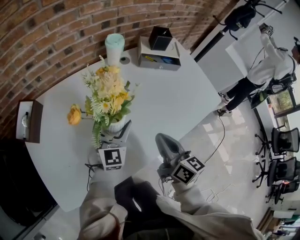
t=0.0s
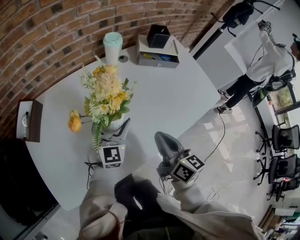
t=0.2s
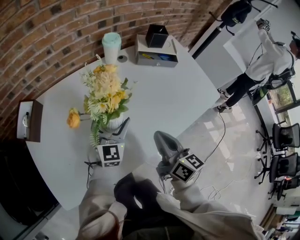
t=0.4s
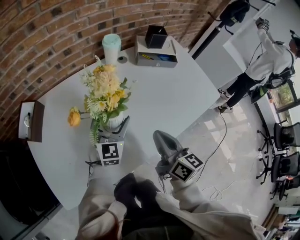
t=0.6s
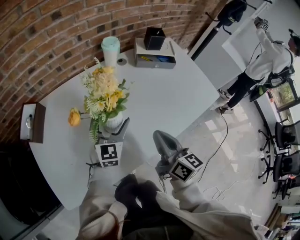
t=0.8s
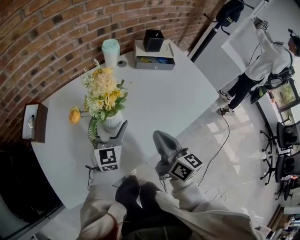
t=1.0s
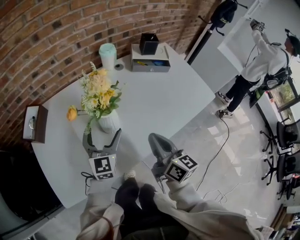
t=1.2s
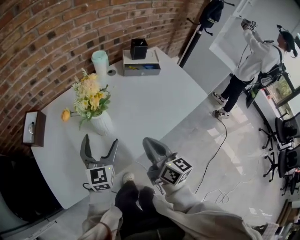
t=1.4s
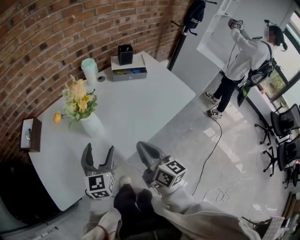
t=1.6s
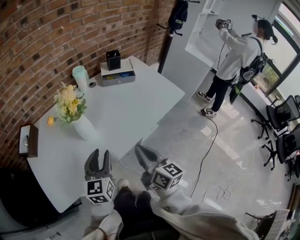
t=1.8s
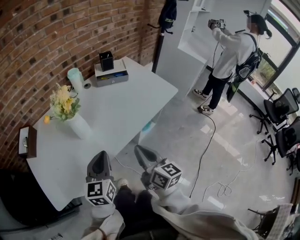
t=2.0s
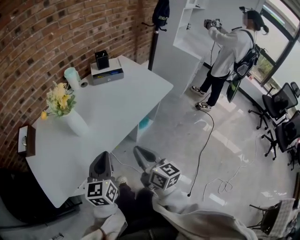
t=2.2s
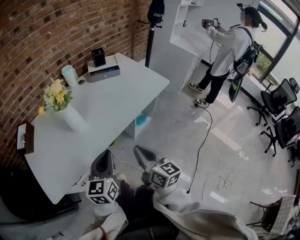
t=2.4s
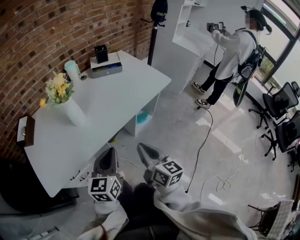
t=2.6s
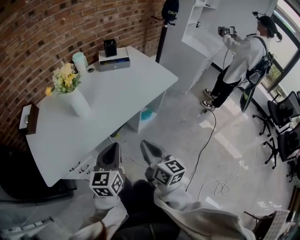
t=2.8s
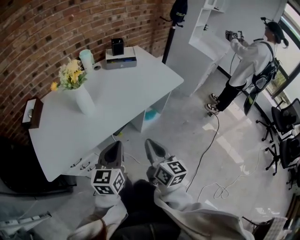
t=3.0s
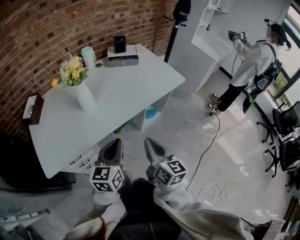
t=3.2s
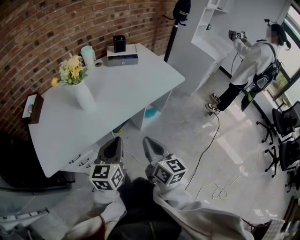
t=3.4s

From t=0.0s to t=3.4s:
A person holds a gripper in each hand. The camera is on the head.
From t=0.0s to t=1.6s: Both grippers move backward and upward, roughly 15 cm.
From t=1.6s to t=3.4s: The grippers both shift backward and to the right by roughly 25 cm. The left gripper closes its fingers.

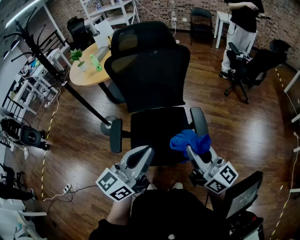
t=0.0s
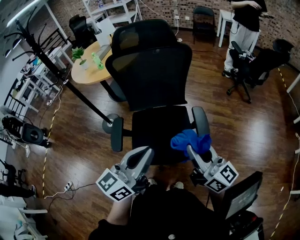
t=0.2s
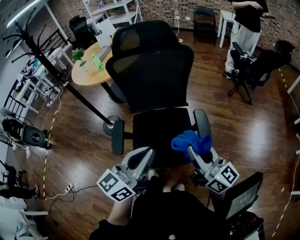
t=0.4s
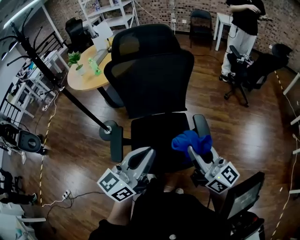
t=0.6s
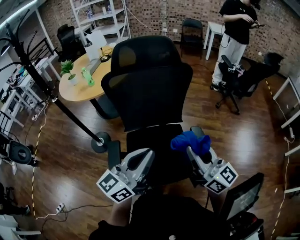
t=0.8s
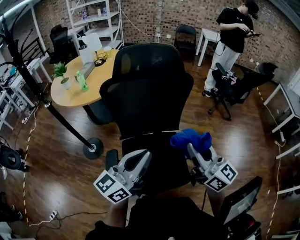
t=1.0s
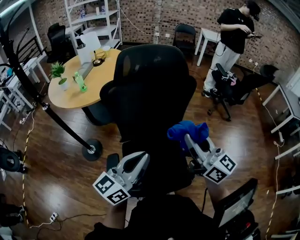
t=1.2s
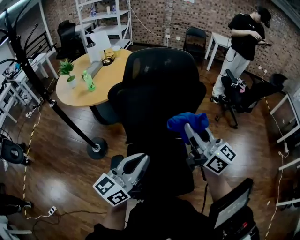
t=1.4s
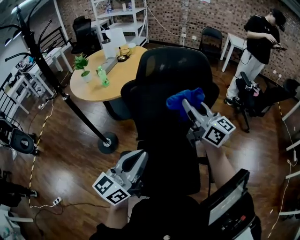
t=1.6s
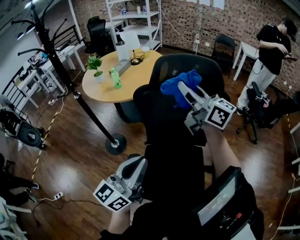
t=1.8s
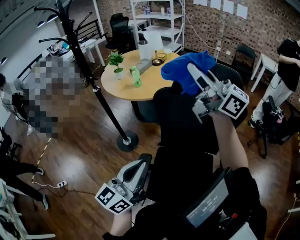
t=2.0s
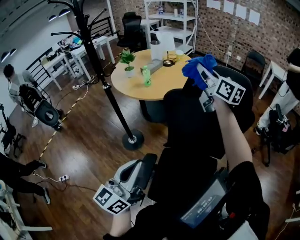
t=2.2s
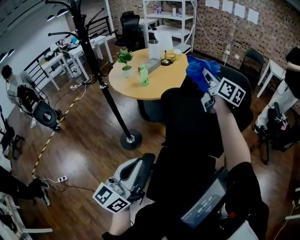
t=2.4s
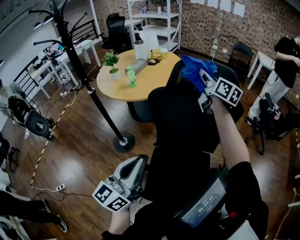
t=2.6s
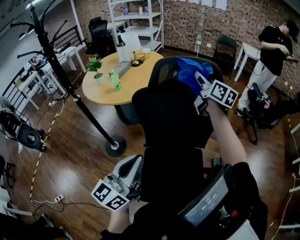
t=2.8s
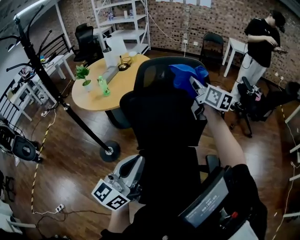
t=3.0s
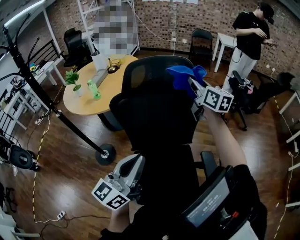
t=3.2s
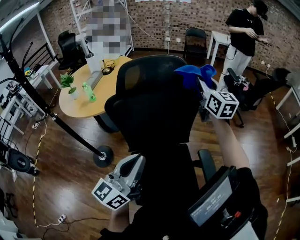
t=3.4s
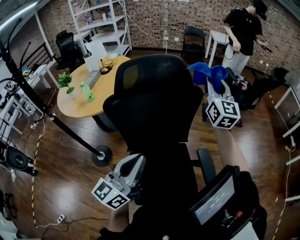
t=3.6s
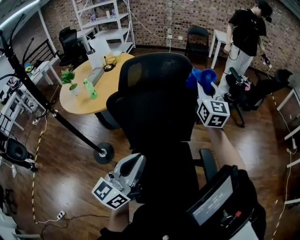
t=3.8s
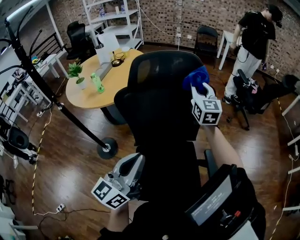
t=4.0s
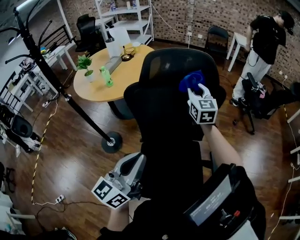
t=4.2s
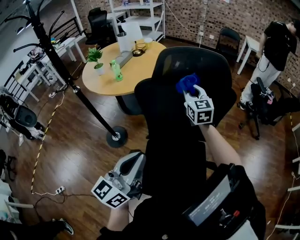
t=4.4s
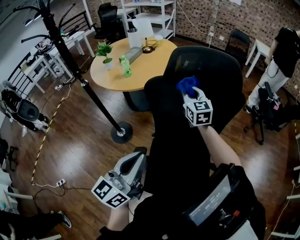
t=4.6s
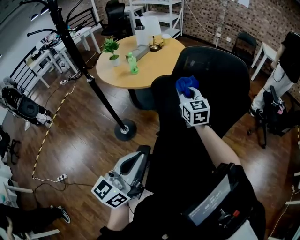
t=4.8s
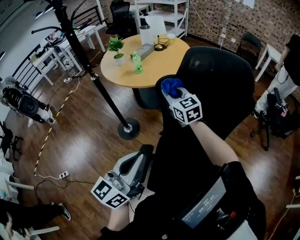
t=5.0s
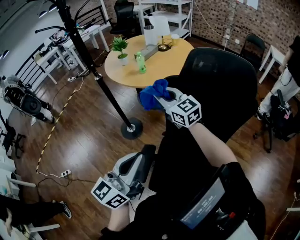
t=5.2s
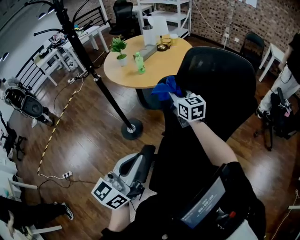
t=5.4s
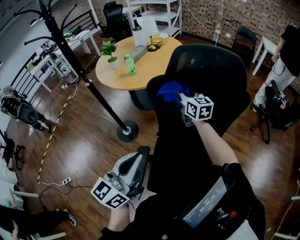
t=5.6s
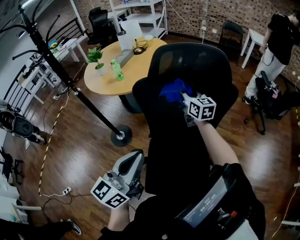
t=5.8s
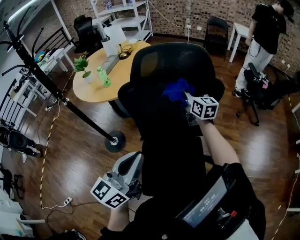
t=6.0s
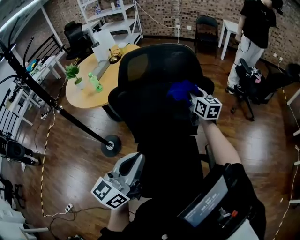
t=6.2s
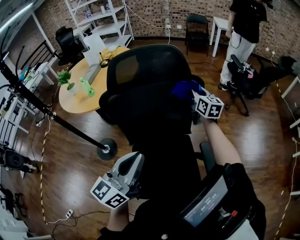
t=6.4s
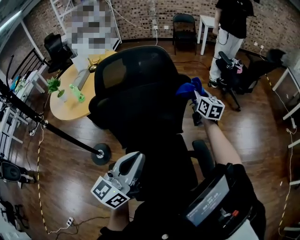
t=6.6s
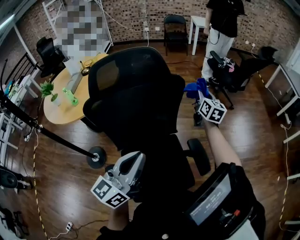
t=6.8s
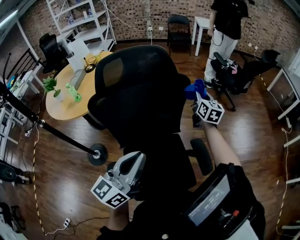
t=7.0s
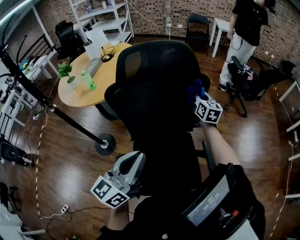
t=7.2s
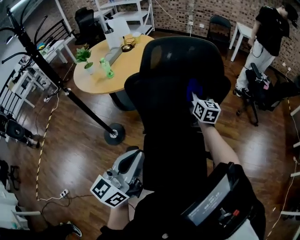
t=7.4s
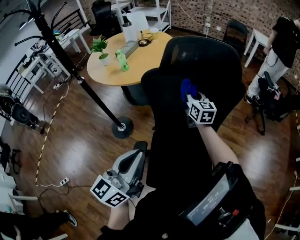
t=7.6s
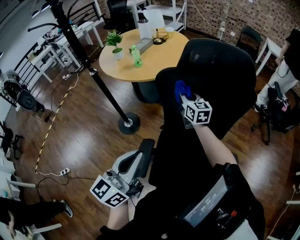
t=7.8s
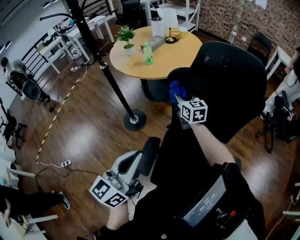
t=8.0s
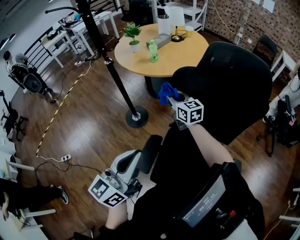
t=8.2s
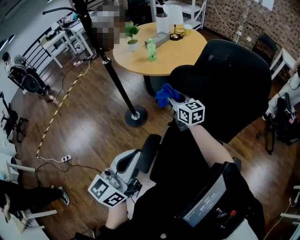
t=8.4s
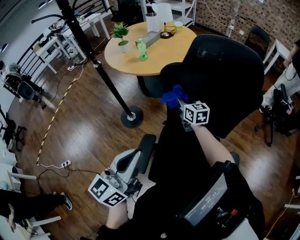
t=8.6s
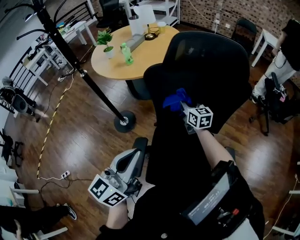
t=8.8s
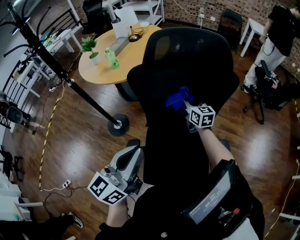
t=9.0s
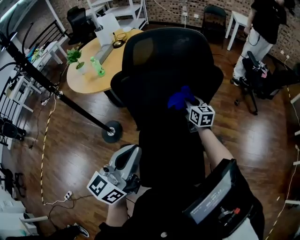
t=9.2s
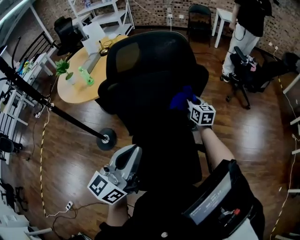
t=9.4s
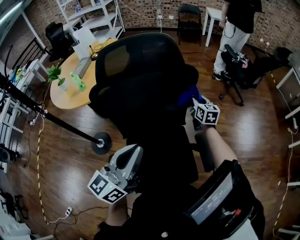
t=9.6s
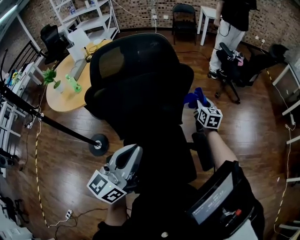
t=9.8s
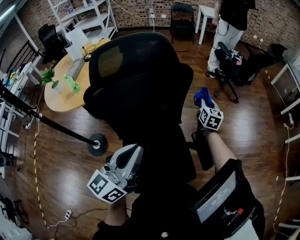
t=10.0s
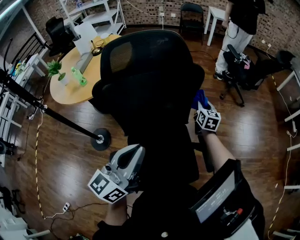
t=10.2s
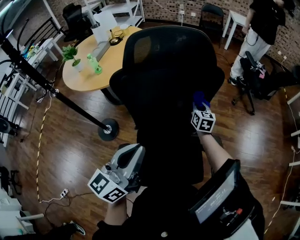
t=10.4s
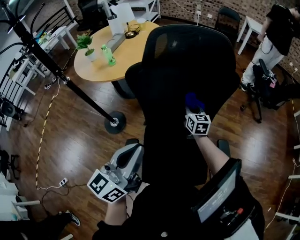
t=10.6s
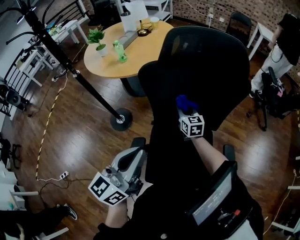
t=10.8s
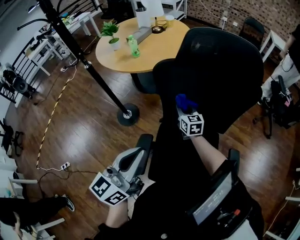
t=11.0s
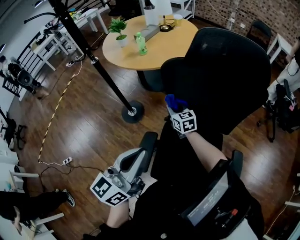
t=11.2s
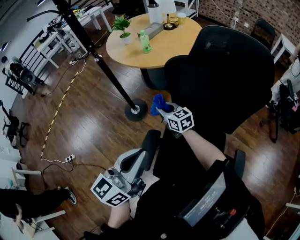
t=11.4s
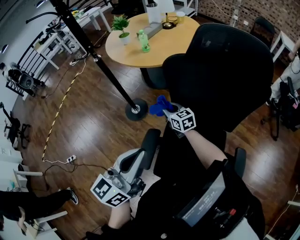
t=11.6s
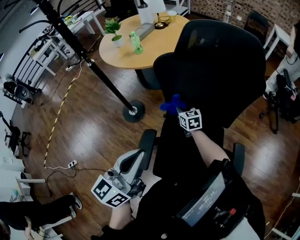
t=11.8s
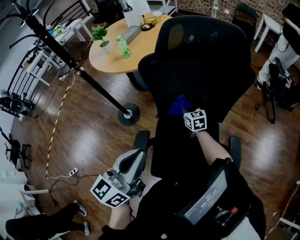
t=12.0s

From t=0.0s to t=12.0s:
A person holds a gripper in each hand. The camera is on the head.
From t=0.0s to t=1.6s: The right gripper heads forward and to the left, covering approximately 40 cm. Meanwhile the left gripper travels forward and to the left by roughly 25 cm.
From t=1.6s to t=3.0s: The right gripper reaches about 15 cm upward, then returns.
From t=3.0s to t=4.4s: The left gripper moves about 5 cm to the right and comes back, while the right gripper moves downward and to the left, approximately 15 cm, and swivels some 30 degrees.
From t=4.4s to t=6.0s: The right gripper turns by some 20 degrees.
From t=7.6s to t=9.0s: The right gripper shifts approximately 10 cm downward, and reaches roughly 25 cm to the left, then returns. Meanwhile the left gripper travels to the left and back again, about 5 cm each way.
From t=9.0s to t=10.4s: The right gripper changes its angle by some 30 degrees.
From t=10.4s to t=12.0s: The left gripper changes place by about 10 cm. Meanwhile the right gripper changes its angle by approximately 30 degrees.

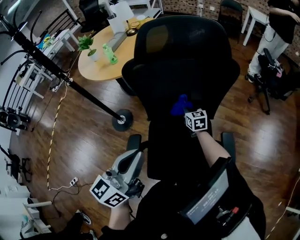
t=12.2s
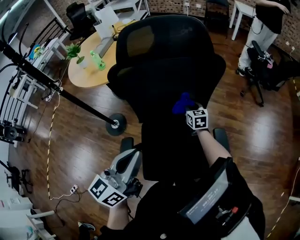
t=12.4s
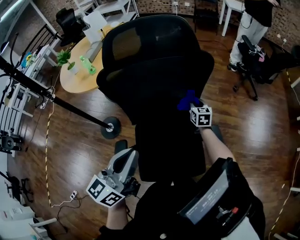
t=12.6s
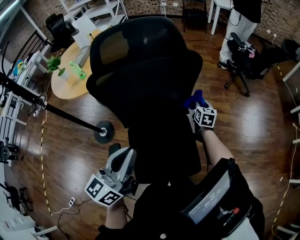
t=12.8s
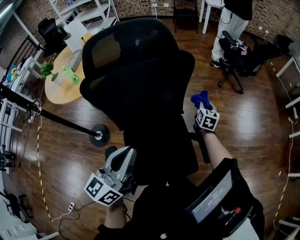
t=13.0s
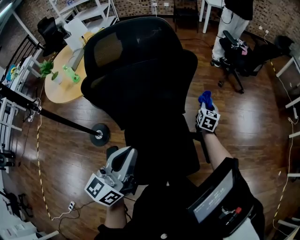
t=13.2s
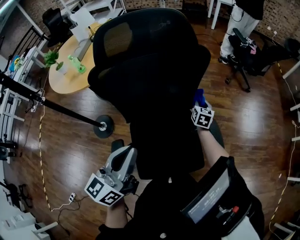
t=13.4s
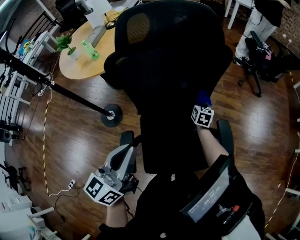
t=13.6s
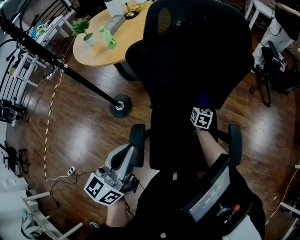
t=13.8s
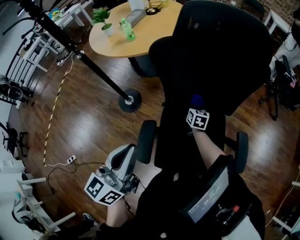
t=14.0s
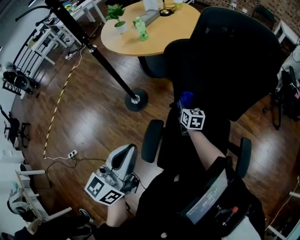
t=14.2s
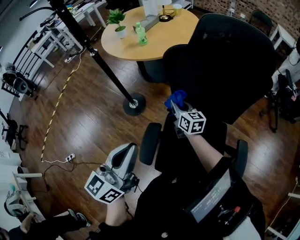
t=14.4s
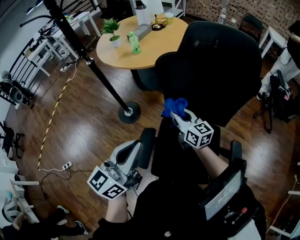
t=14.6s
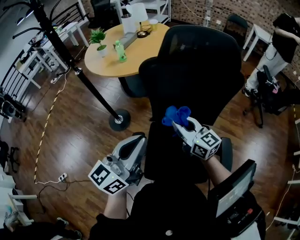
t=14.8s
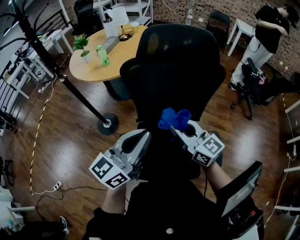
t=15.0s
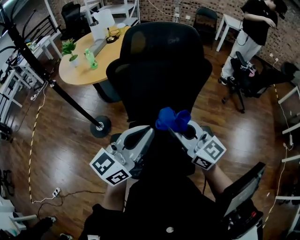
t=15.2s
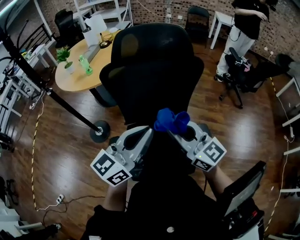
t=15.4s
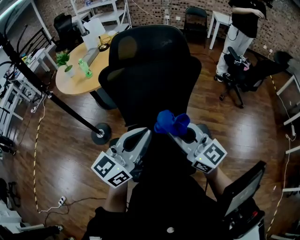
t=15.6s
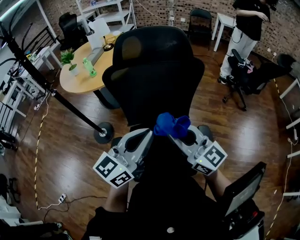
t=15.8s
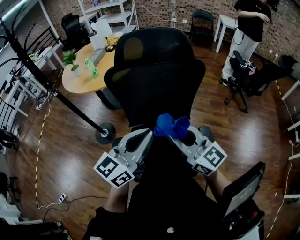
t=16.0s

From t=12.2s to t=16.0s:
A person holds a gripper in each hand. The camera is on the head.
From t=12.2s to t=13.4s: The left gripper changes place by roughly 5 cm. Meanwhile the right gripper ends up some 25 cm from where it was, and rotates roughly 40 degrees.
From t=13.4s to t=14.8s: The right gripper moves some 40 cm, and swivels some 70 degrees.
From t=14.8s to t=16.0s: The left gripper is displaced to the right by roughly 15 cm. The right gripper goes about 20 cm to the right, backward and upward.

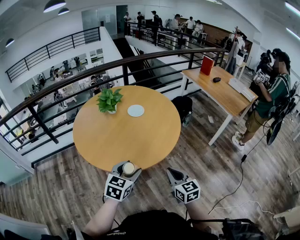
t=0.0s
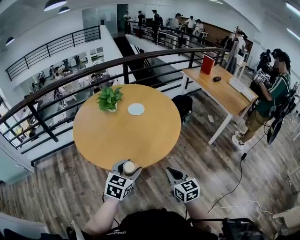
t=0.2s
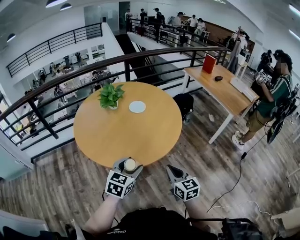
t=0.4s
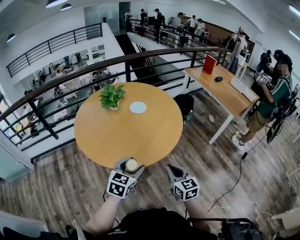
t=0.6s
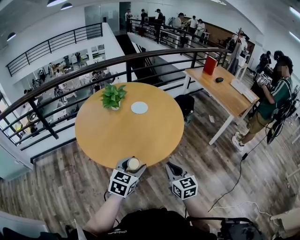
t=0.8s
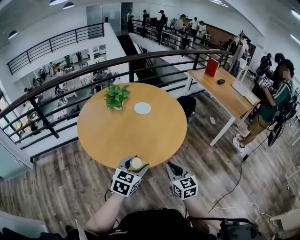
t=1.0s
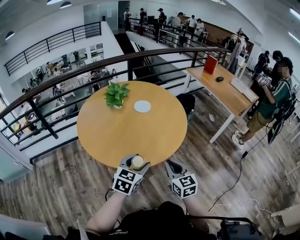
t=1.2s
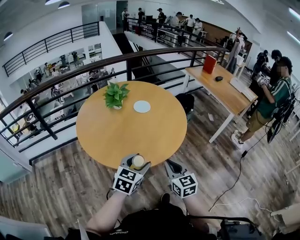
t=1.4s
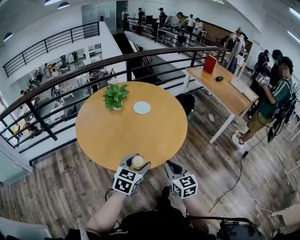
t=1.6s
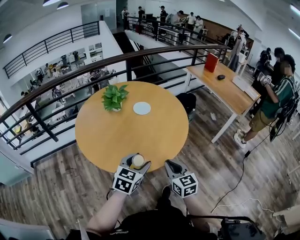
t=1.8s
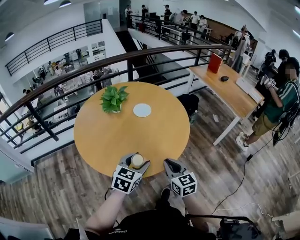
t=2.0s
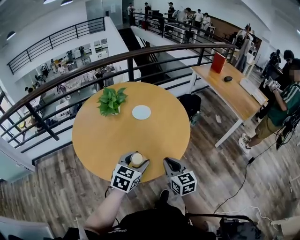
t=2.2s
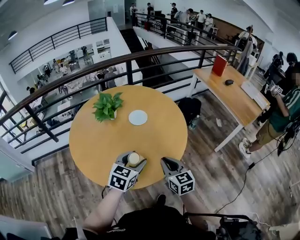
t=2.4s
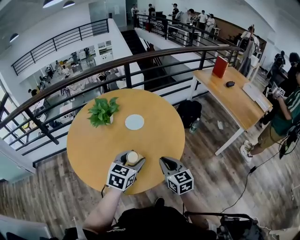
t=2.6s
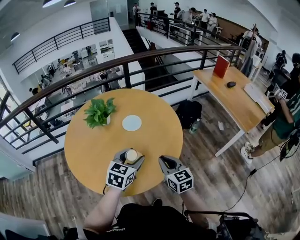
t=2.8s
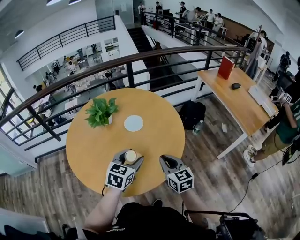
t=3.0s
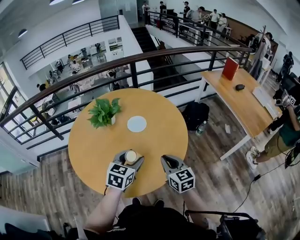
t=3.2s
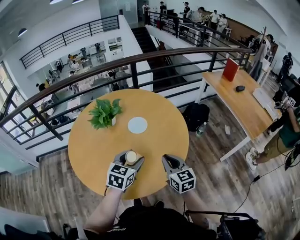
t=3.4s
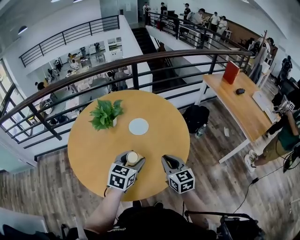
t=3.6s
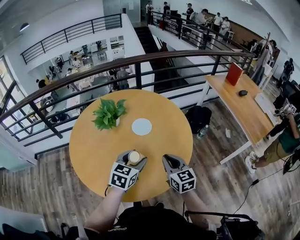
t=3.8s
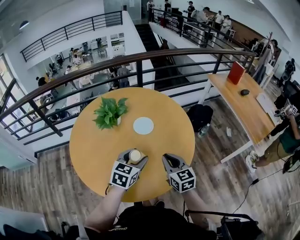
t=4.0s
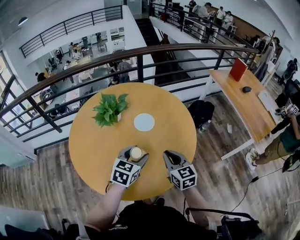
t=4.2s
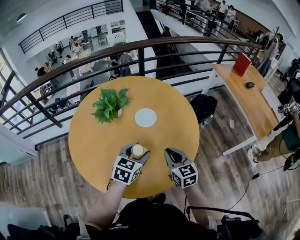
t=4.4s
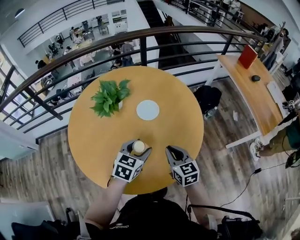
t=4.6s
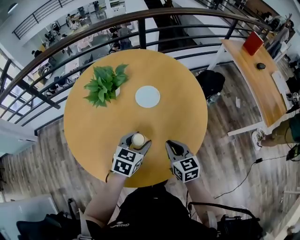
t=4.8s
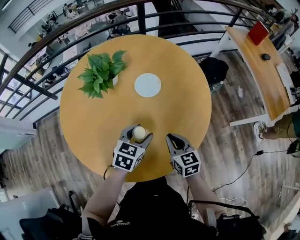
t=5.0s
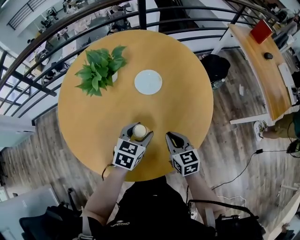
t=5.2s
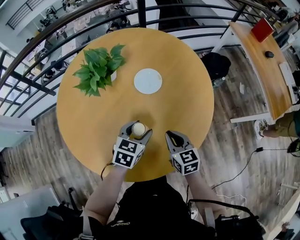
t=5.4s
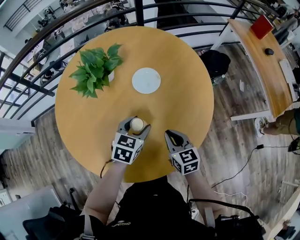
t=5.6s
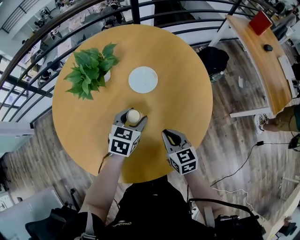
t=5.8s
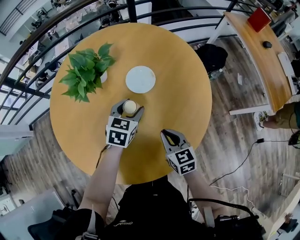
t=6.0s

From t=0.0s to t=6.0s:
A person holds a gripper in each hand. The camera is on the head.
From t=0.0s to t=1.6s: The right gripper goes some 10 cm to the left.
From t=1.6s to t=3.0s: The grippers both shift forward and to the right by approximately 25 cm.
From t=3.0s to t=4.4s: The right gripper travels forward and to the left by approximately 10 cm, while the left gripper travels forward by some 5 cm.
From t=4.4s to t=6.0s: The left gripper moves forward and downward, approximately 20 cm. Meanwhile the right gripper is displaced downward by approximately 15 cm.
